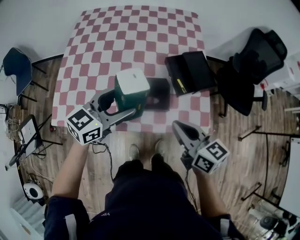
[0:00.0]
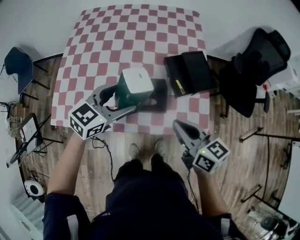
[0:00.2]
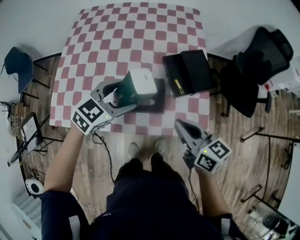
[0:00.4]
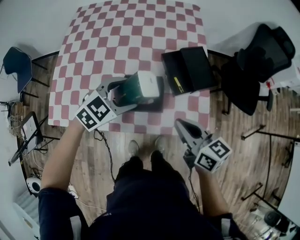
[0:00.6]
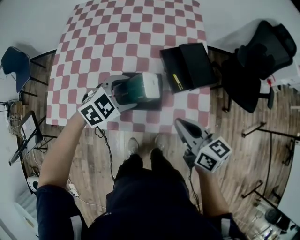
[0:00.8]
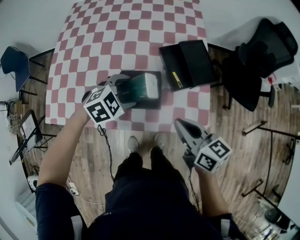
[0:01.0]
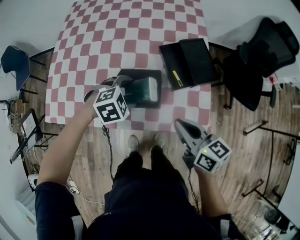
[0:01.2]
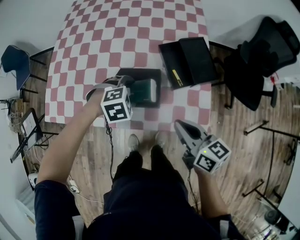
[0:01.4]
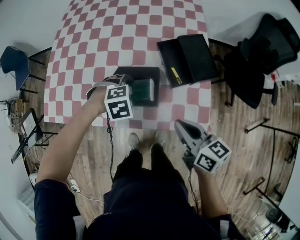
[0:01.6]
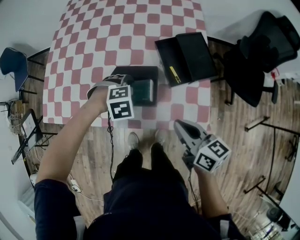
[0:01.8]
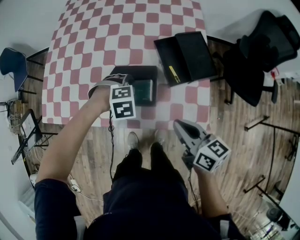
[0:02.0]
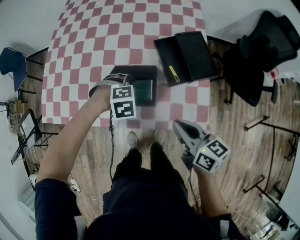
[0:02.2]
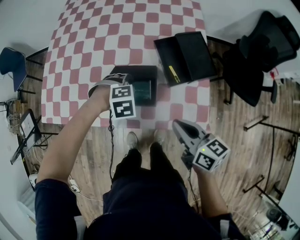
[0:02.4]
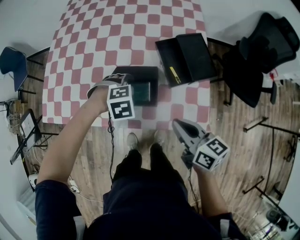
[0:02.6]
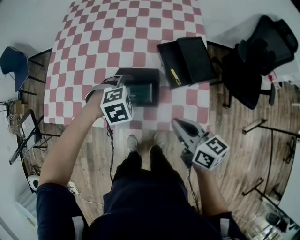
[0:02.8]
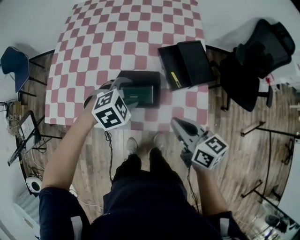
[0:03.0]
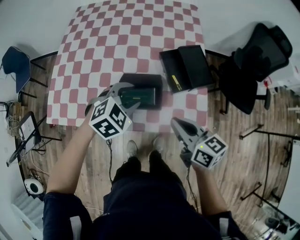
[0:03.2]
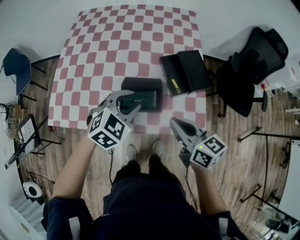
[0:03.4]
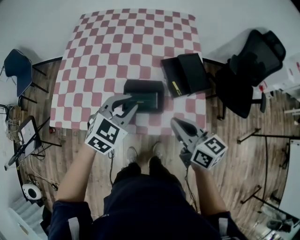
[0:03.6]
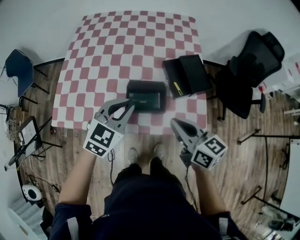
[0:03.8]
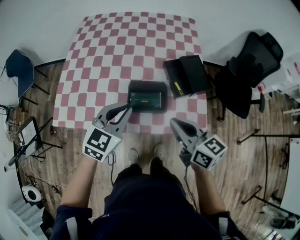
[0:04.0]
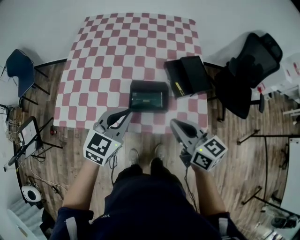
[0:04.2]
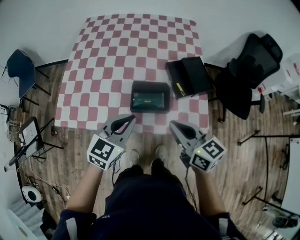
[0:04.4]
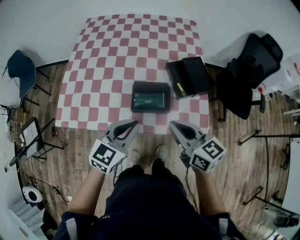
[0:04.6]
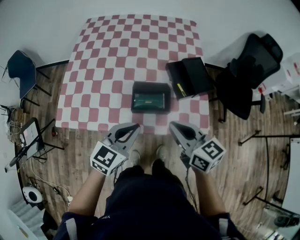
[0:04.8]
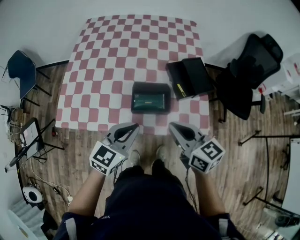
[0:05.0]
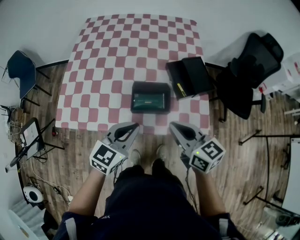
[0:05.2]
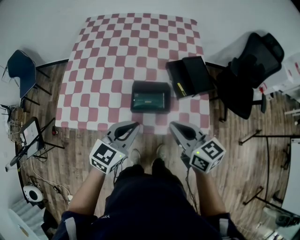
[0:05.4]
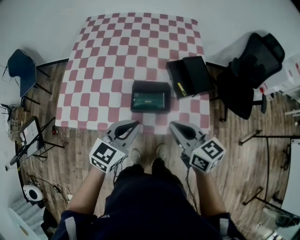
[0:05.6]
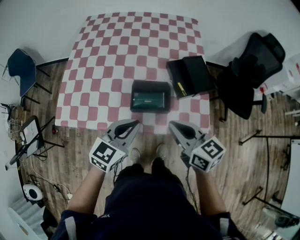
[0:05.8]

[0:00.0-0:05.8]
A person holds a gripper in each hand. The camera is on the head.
0.0 to 1.4 s: The left gripper moves downward, about 20 cm, and angles its fingers downward, by some 60 degrees. Meanwhile the right gripper travels to the right and downward by some 10 cm.
1.4 to 2.8 s: The grippers make only small movements.
2.8 to 4.4 s: The right gripper shifts some 15 cm upward and to the left. Meanwhile the left gripper goes roughly 20 cm upward, backward and to the left, angles its fingers upward, by approximately 50 degrees, and closes its fingers.
4.4 to 5.8 s: There are only small adjustments of the grippers.

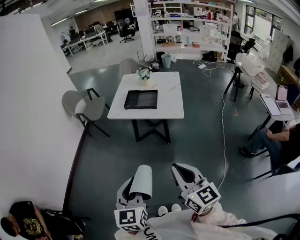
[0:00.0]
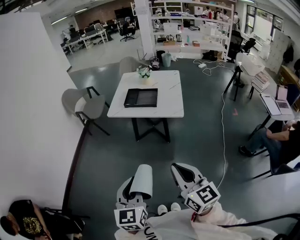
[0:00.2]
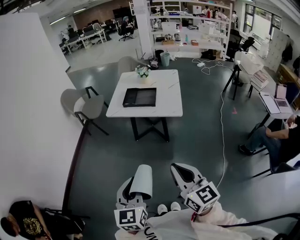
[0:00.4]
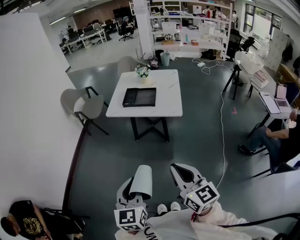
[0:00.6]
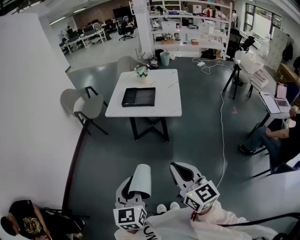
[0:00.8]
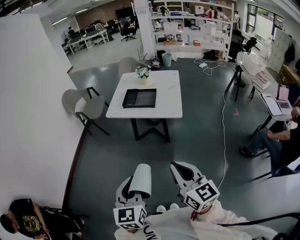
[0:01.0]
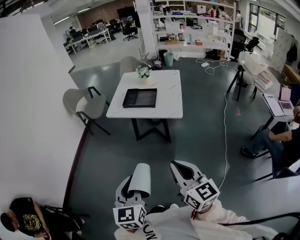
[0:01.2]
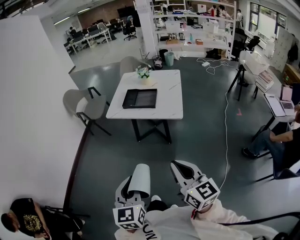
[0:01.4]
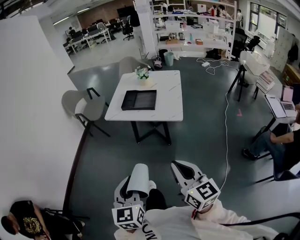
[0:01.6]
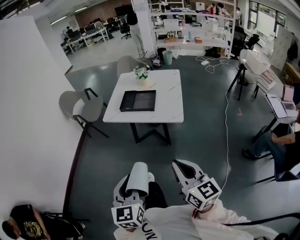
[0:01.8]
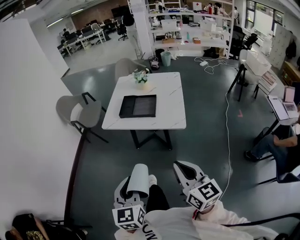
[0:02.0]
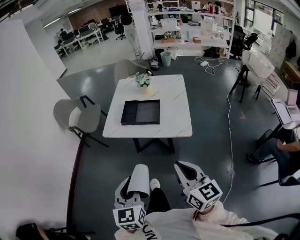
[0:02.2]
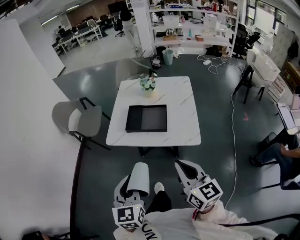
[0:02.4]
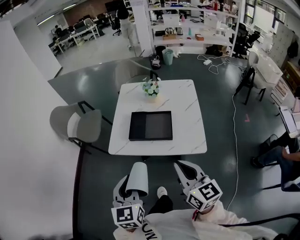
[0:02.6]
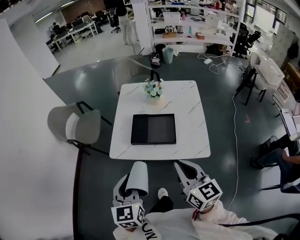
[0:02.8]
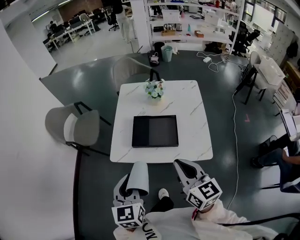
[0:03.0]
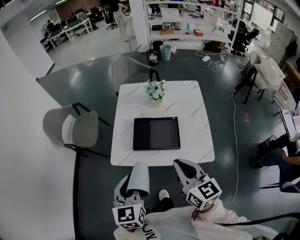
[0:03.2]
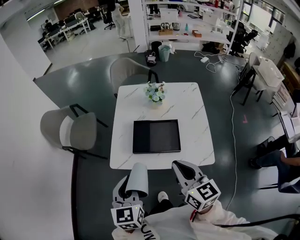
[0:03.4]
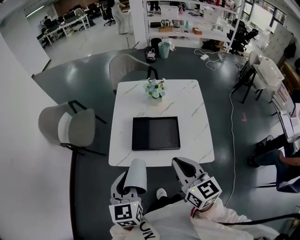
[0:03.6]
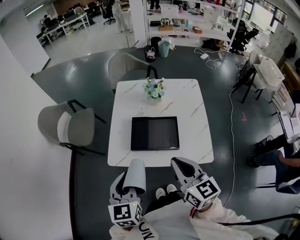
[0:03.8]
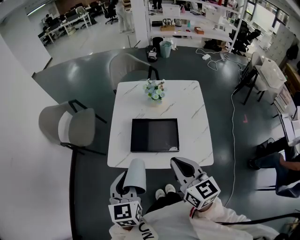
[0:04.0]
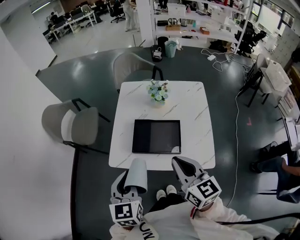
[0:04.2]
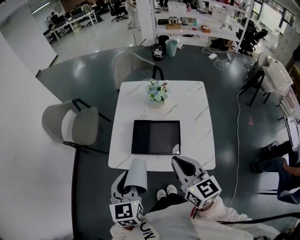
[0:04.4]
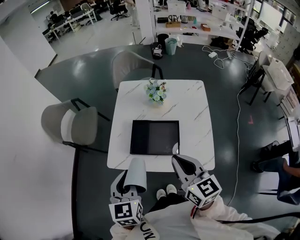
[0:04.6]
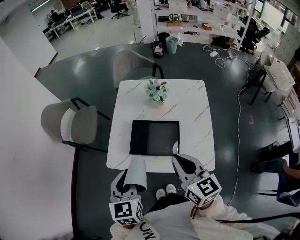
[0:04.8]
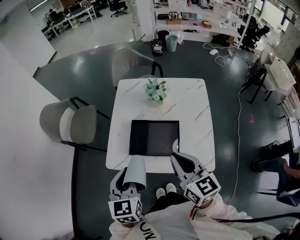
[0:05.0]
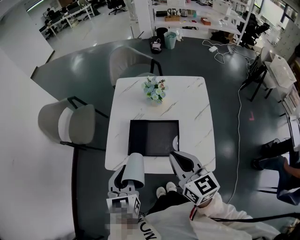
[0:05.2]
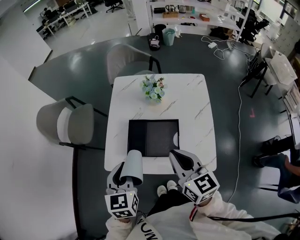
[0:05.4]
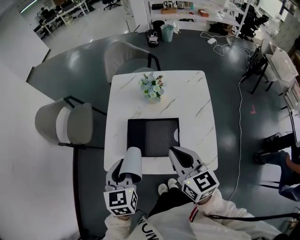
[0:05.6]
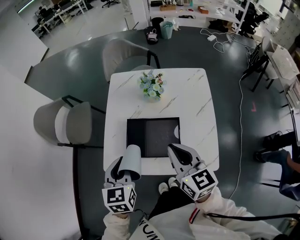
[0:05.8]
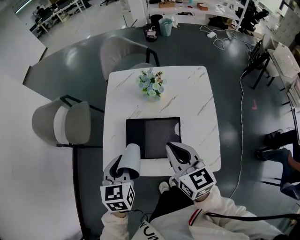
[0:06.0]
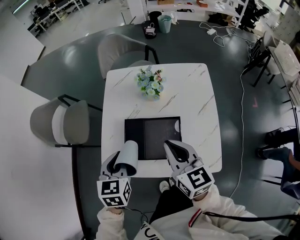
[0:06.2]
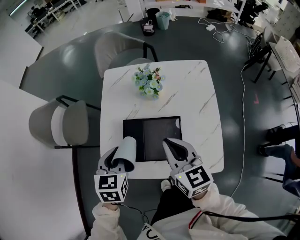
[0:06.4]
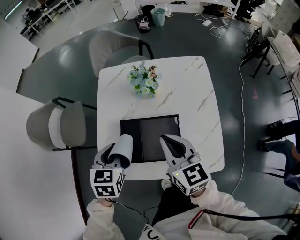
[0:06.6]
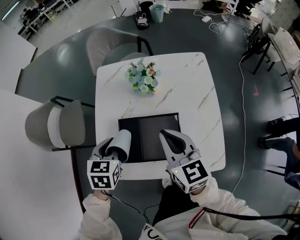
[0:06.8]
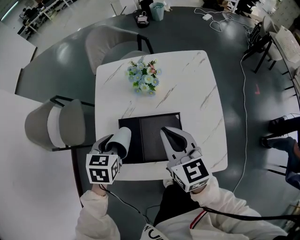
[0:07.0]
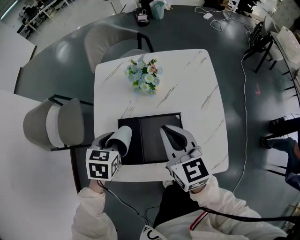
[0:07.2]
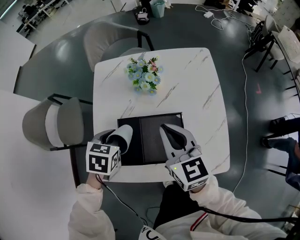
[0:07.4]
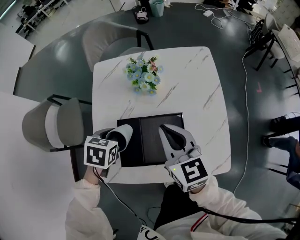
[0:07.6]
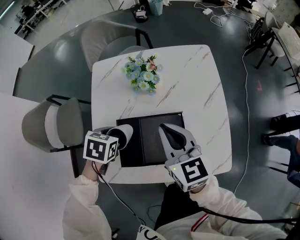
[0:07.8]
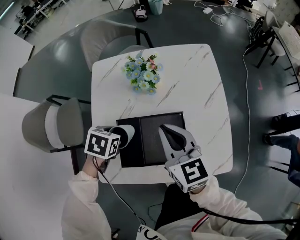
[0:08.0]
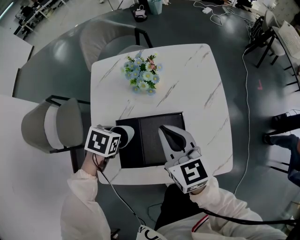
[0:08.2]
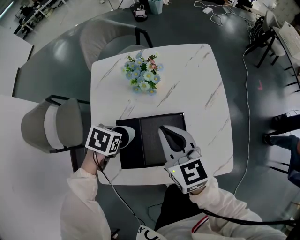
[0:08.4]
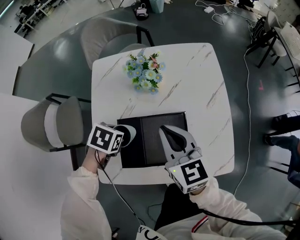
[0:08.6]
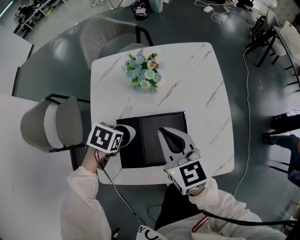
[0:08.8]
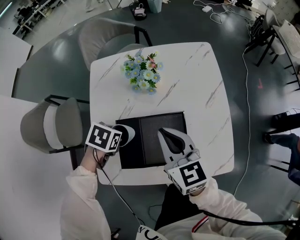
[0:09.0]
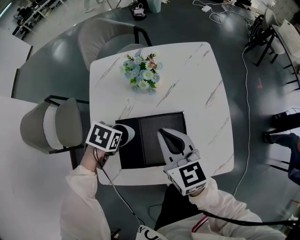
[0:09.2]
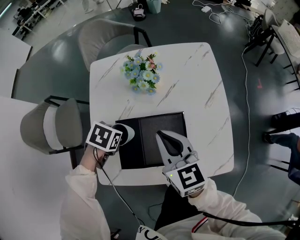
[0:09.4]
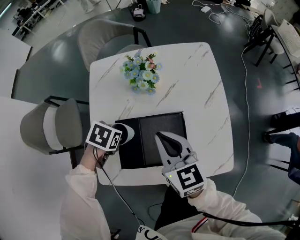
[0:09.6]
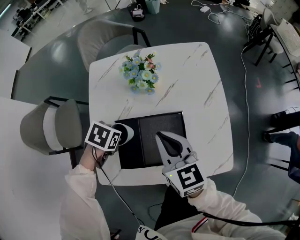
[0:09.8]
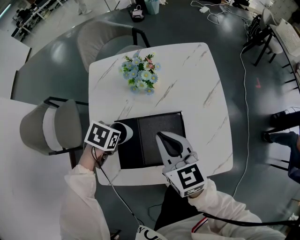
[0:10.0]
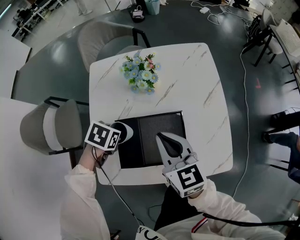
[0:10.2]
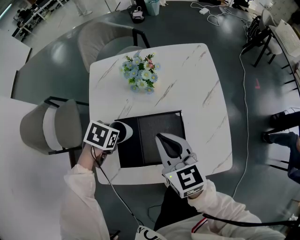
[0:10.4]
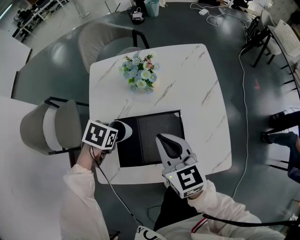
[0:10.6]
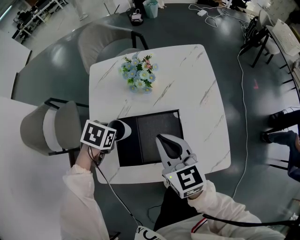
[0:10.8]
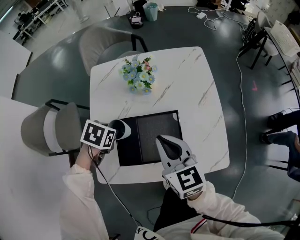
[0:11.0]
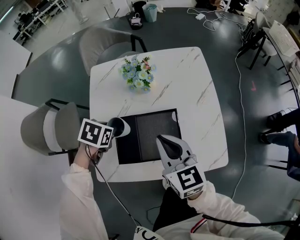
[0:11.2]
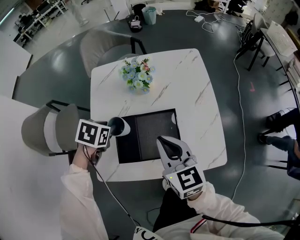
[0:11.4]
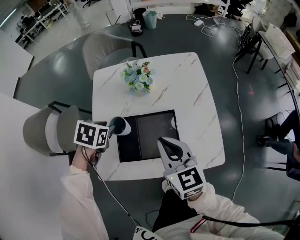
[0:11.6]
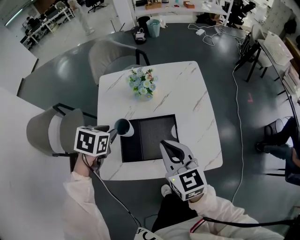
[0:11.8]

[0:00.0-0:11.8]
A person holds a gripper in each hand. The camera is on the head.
0.0 to 1.4 s: The right gripper shifts by roughly 5 cm.
1.4 to 3.0 s: The pair of grippers is taken forward, about 50 cm.
3.0 to 4.4 s: Both grippers travel together forward, approximately 10 cm.
4.4 to 6.0 s: The two grippers go some 15 cm forward and downward.
6.0 to 7.4 s: The left gripper goes some 20 cm forward and downward, and turns by roughly 30 degrees. The right gripper shifts about 10 cm forward and downward.
7.4 to 8.8 s: The left gripper moves downward, approximately 5 cm, and swivels some 20 degrees.
8.8 to 10.4 s: The left gripper opens.
10.4 to 11.8 s: The right gripper ends up some 10 cm from where it was. Meanwhile the left gripper is displaced upward by roughly 15 cm.

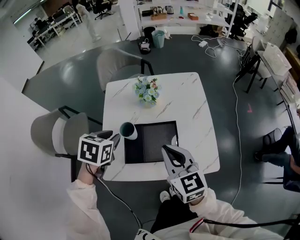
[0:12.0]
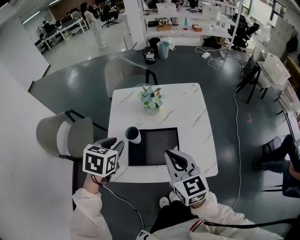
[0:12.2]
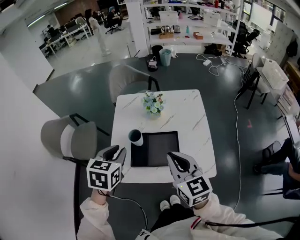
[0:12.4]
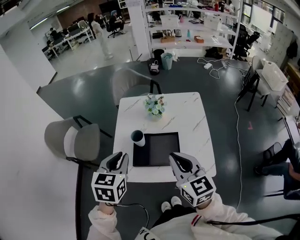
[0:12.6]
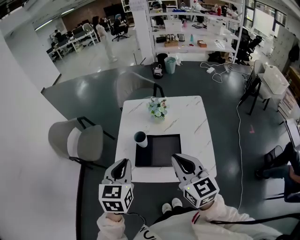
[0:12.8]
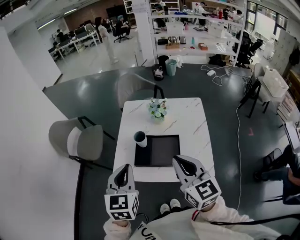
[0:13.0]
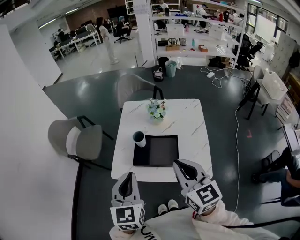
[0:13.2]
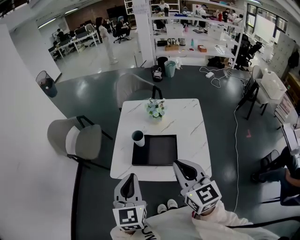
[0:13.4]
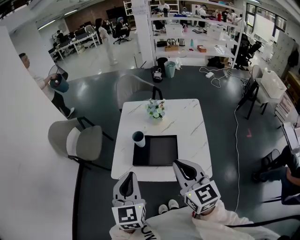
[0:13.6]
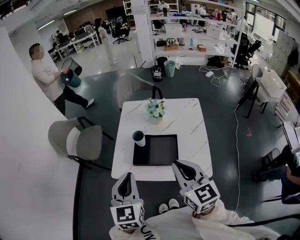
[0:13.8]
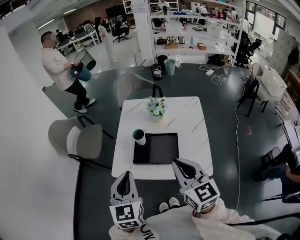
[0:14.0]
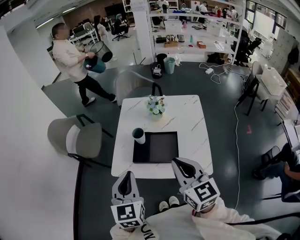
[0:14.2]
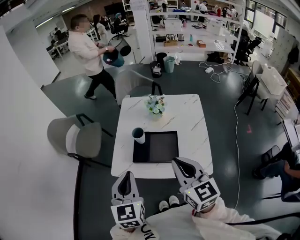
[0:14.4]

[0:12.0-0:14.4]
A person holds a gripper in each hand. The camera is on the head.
12.0 to 13.2 s: The right gripper goes about 20 cm upward and backward. Meanwhile the left gripper moves backward and upward, approximately 30 cm, tilts its fingers approximately 40 degrees upward, and closes its fingers.
13.2 to 14.4 s: The grippers move only a little.

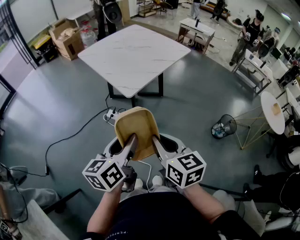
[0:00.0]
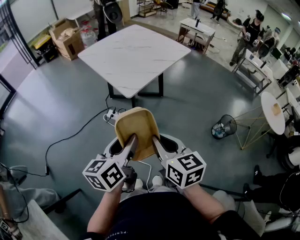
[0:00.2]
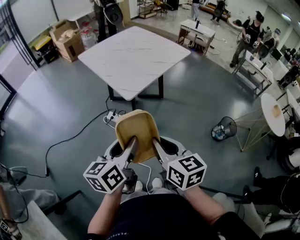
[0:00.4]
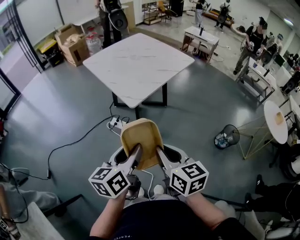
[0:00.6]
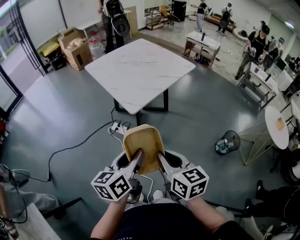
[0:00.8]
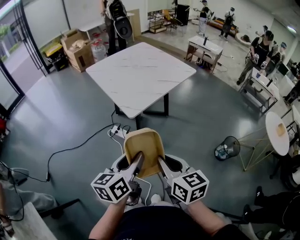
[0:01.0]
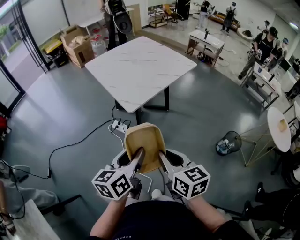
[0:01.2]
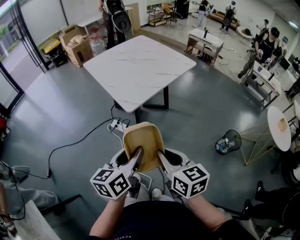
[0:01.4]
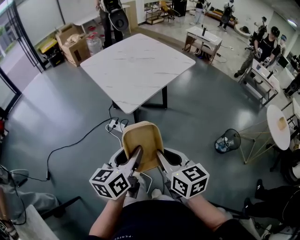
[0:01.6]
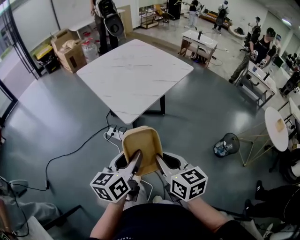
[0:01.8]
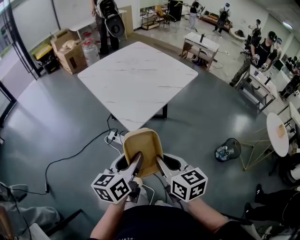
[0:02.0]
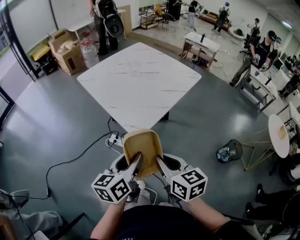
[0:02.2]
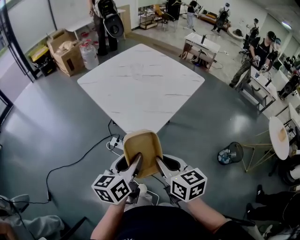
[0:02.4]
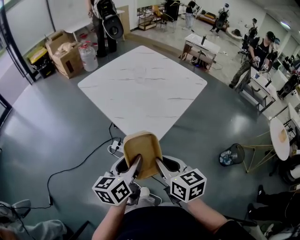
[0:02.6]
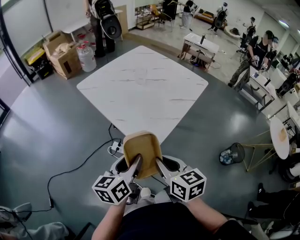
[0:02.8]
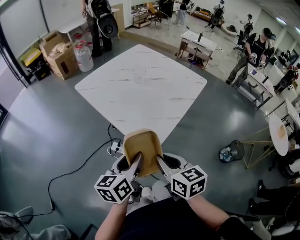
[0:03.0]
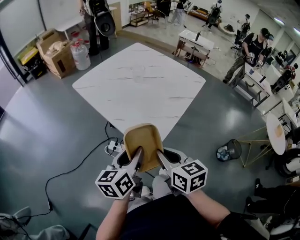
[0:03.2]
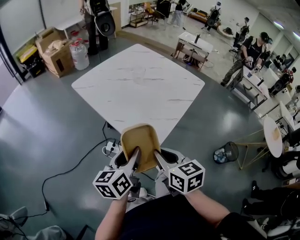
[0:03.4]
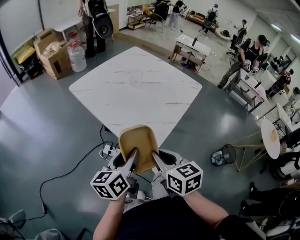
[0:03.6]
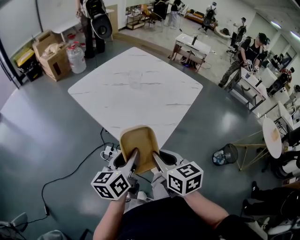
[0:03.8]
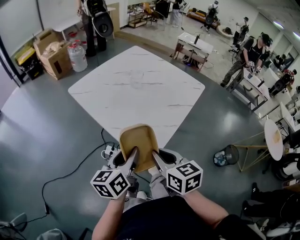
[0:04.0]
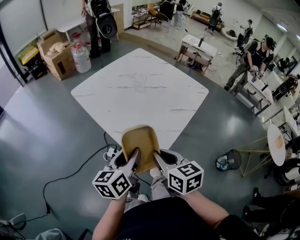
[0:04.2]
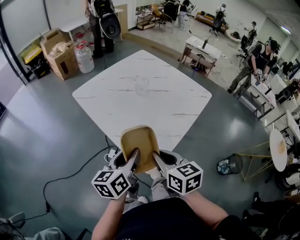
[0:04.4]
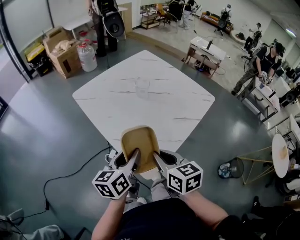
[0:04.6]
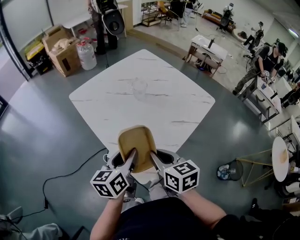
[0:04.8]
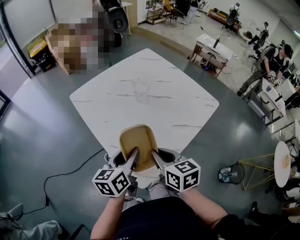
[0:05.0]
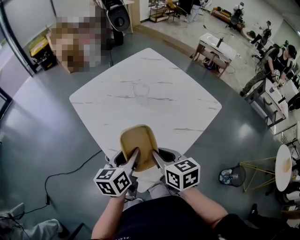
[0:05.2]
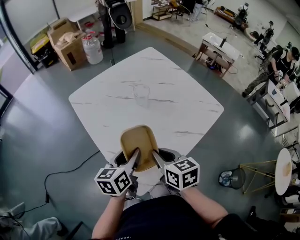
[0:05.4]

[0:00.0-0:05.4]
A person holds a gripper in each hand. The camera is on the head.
0.0 to 1.4 s: The left gripper changes place by approximately 5 cm; the right gripper ends up about 5 cm from where it was.
1.4 to 2.8 s: Both grippers move forward and to the left, about 30 cm.
2.8 to 4.0 s: The two grippers go approximately 10 cm forward.
4.0 to 5.4 s: The two grippers go about 20 cm forward.
